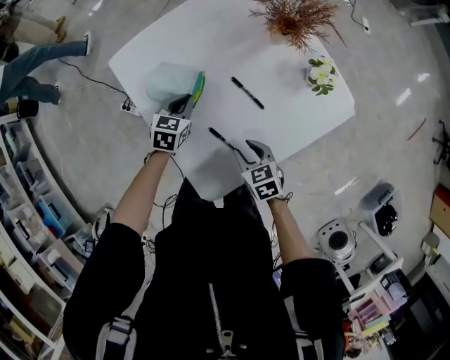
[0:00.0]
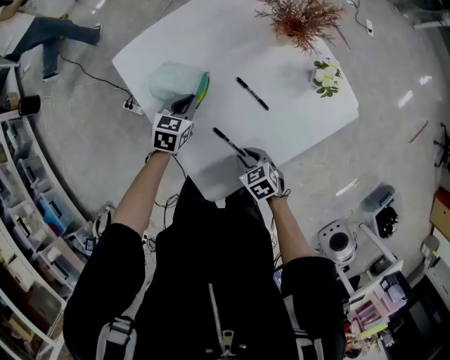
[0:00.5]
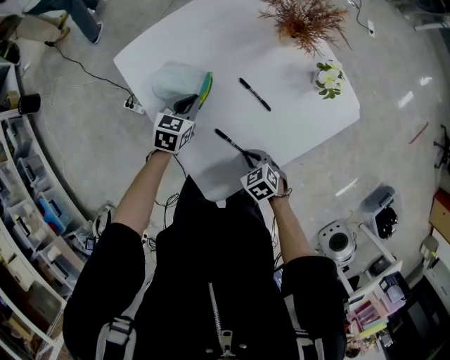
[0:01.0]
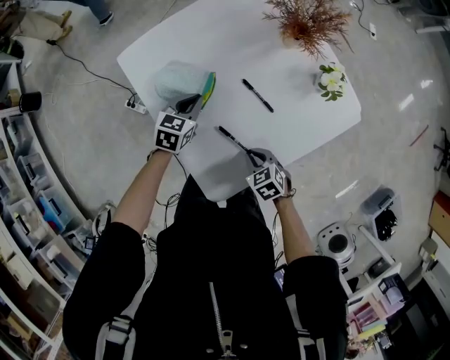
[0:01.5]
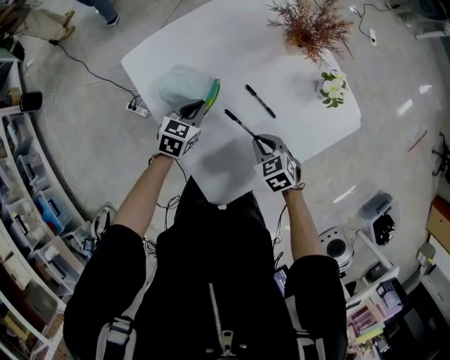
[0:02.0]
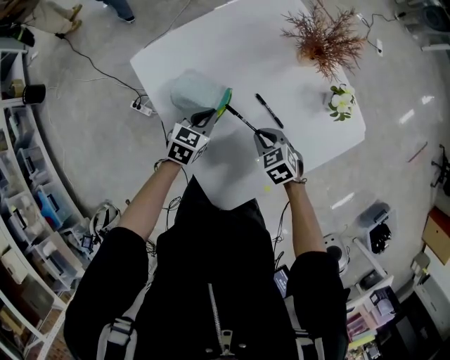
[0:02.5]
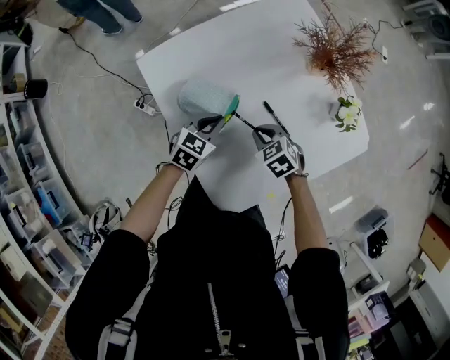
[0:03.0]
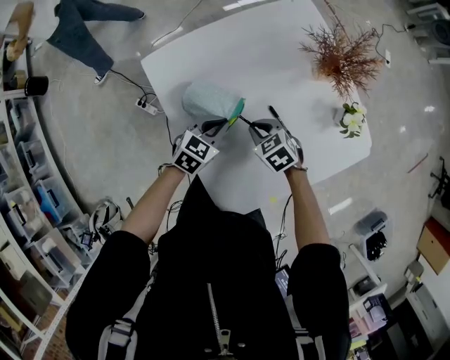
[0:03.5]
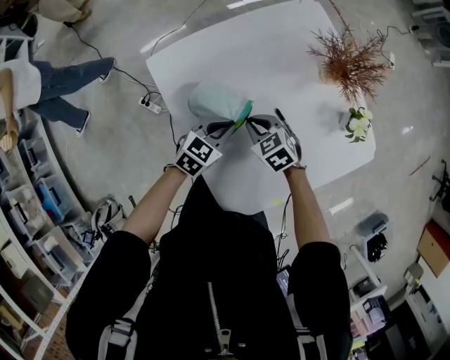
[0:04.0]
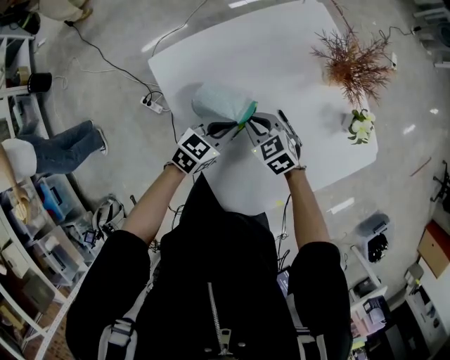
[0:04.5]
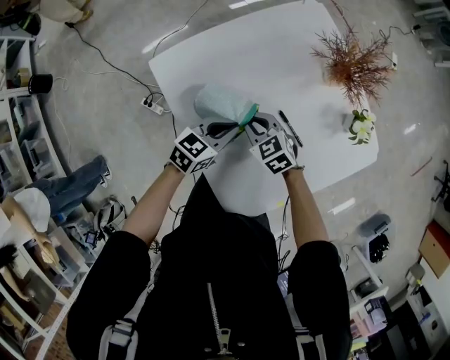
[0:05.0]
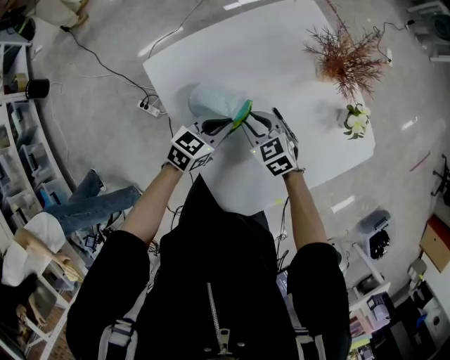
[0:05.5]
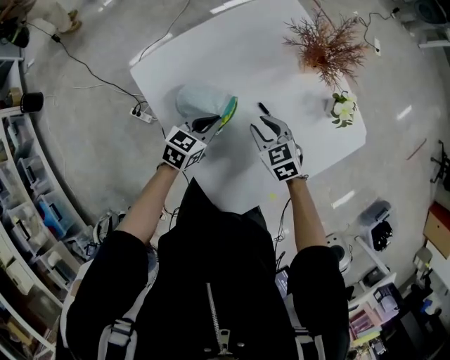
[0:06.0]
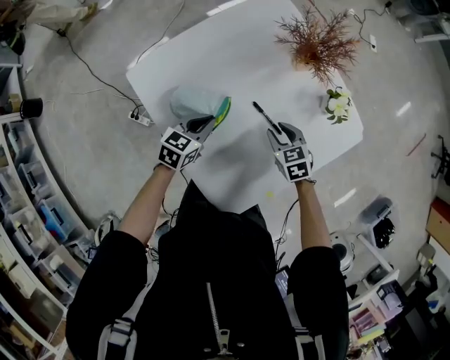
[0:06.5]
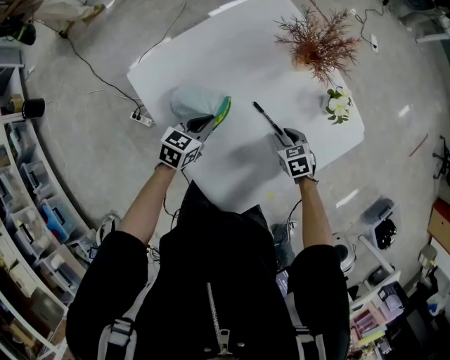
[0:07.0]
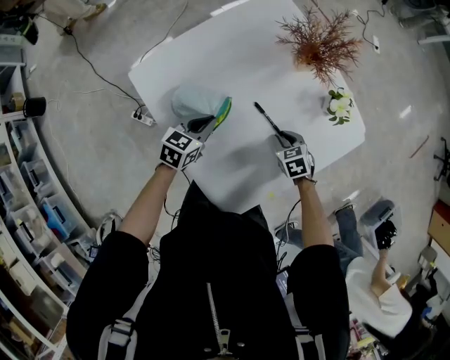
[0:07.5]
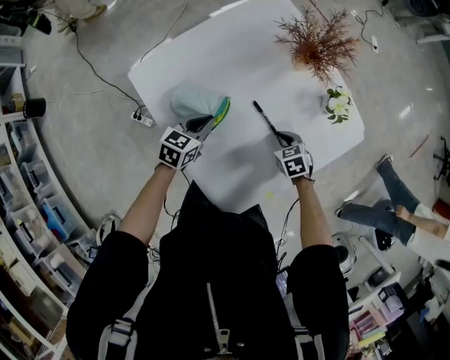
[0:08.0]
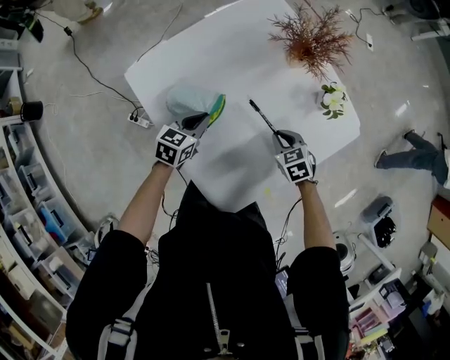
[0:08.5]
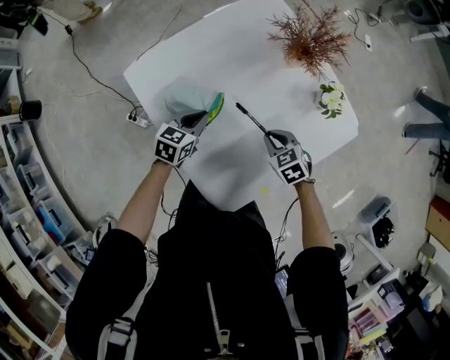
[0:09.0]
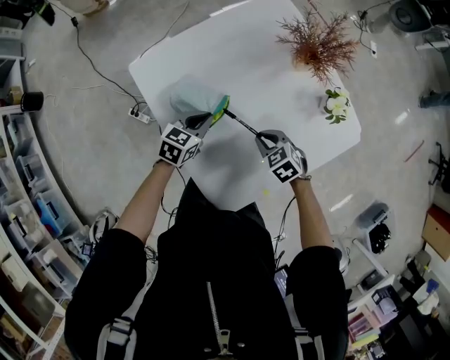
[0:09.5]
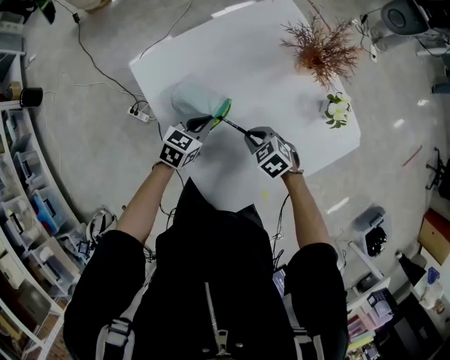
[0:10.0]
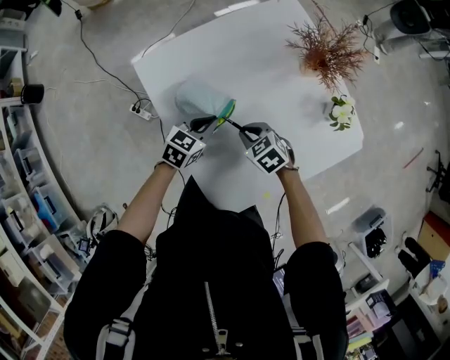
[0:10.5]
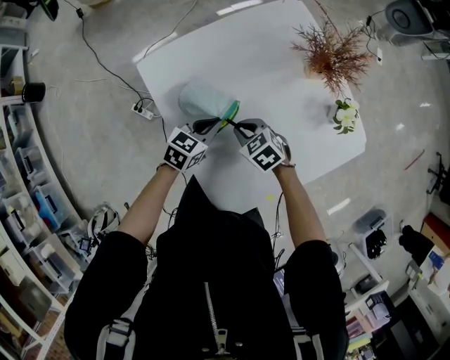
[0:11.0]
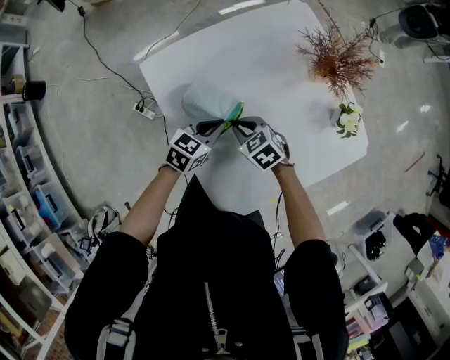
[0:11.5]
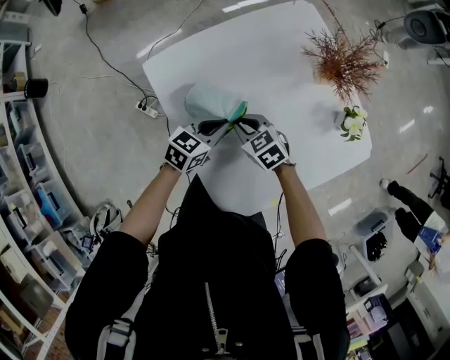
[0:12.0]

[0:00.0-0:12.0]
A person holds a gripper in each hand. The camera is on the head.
0:00.0 to 0:02.0: The right gripper closes.
0:02.0 to 0:04.0: The right gripper shifts approximately 15 cm forward and to the left.
0:04.0 to 0:06.0: The right gripper shifts roughly 5 cm to the right, and opens.
0:06.0 to 0:08.0: The right gripper travels to the right and downward by roughly 15 cm.
0:08.0 to 0:10.0: The right gripper goes about 15 cm to the left and upward, and swivels approximately 30 degrees.
0:10.0 to 0:12.0: The right gripper is displaced to the left and forward by roughly 10 cm.

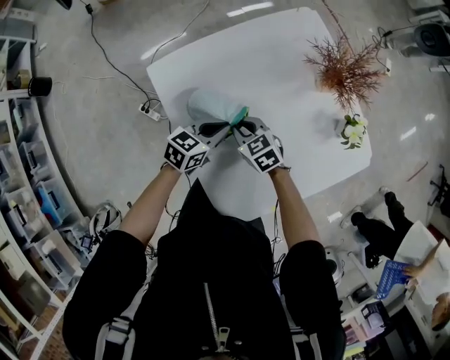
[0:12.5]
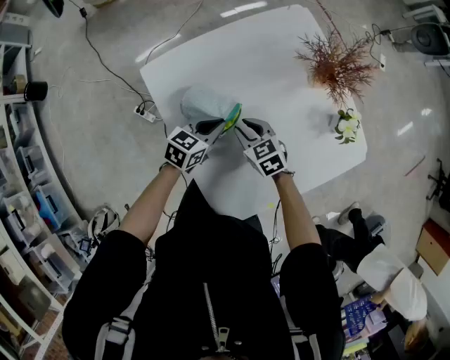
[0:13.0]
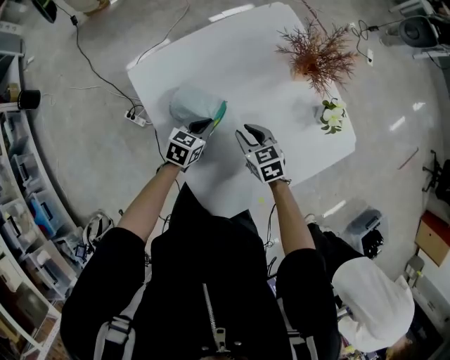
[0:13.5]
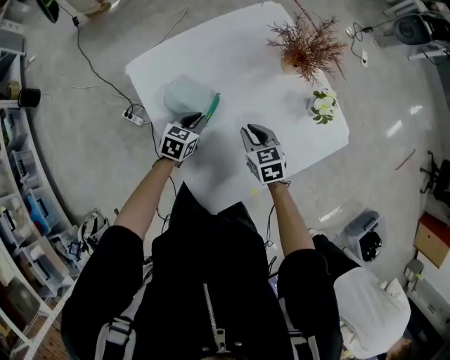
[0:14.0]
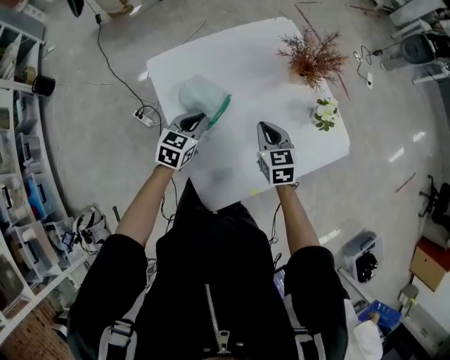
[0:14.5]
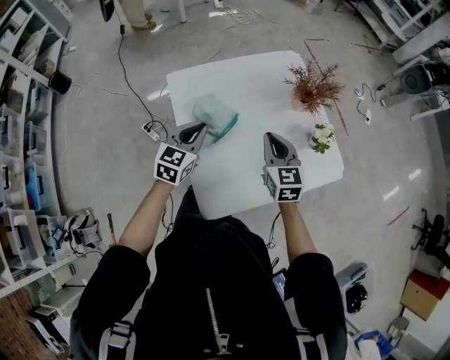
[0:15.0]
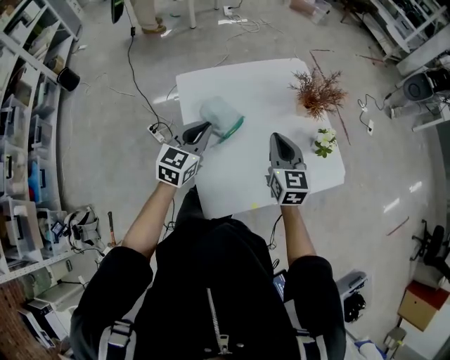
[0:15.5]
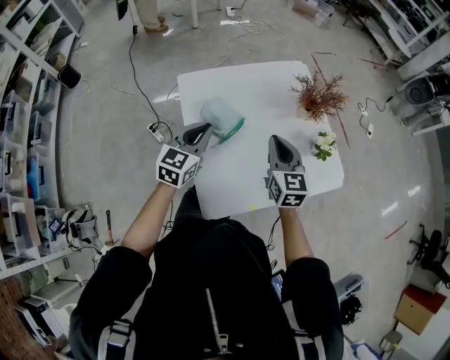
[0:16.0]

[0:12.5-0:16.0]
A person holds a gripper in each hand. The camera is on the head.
0:12.5 to 0:14.5: The left gripper goes approximately 5 cm backward, and turns by approximately 20 degrees. Meanwhile the right gripper goes roughly 20 cm to the right and upward, and turns by some 20 degrees.
0:14.5 to 0:16.0: The two grippers go some 15 cm upward.

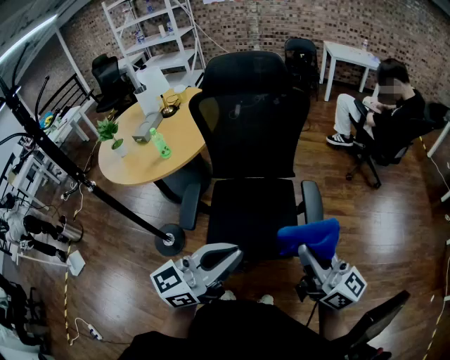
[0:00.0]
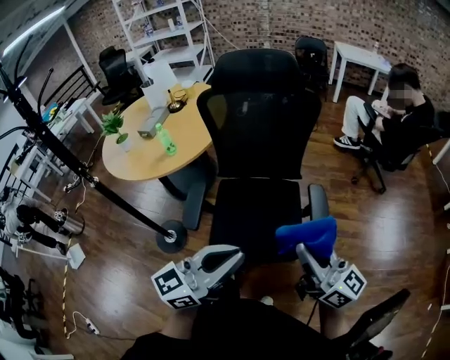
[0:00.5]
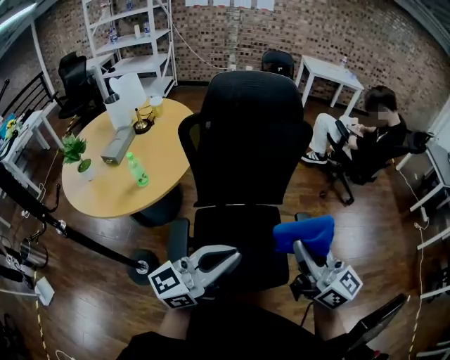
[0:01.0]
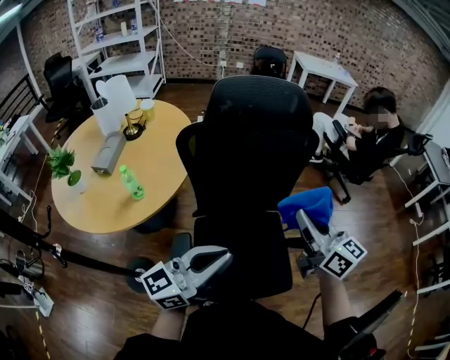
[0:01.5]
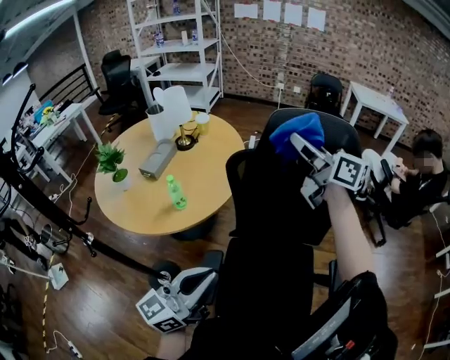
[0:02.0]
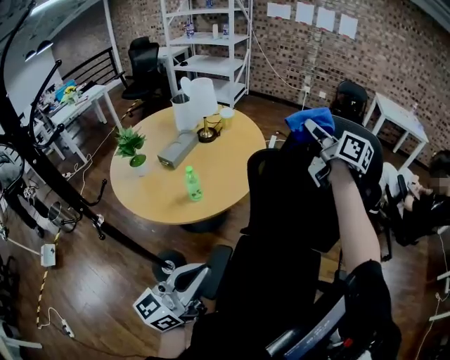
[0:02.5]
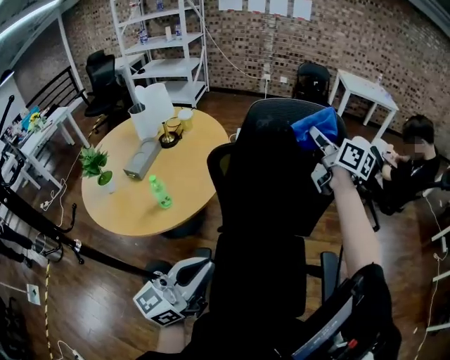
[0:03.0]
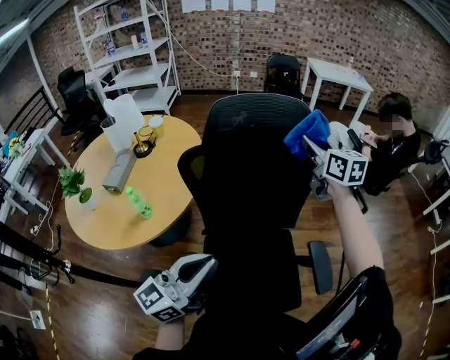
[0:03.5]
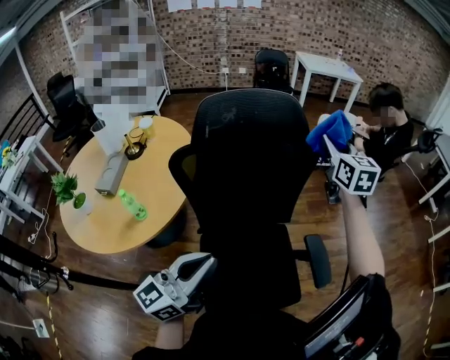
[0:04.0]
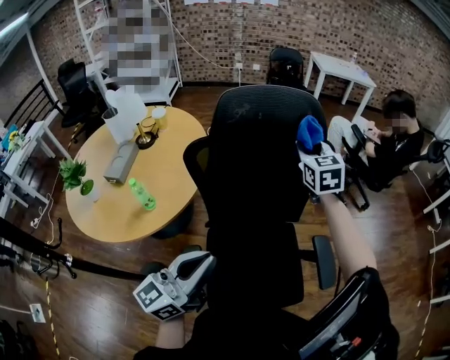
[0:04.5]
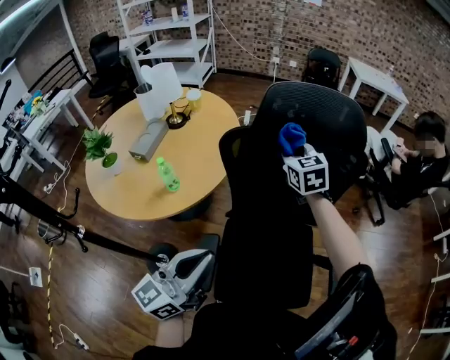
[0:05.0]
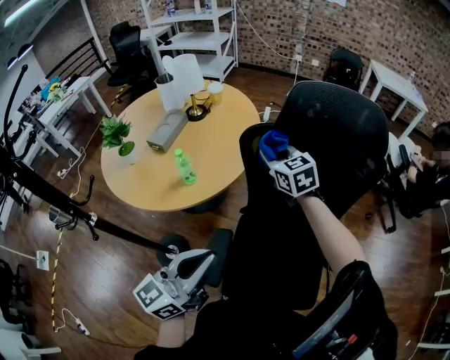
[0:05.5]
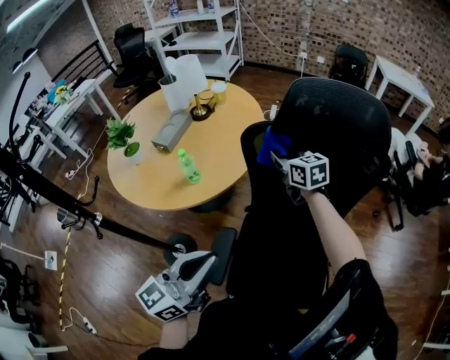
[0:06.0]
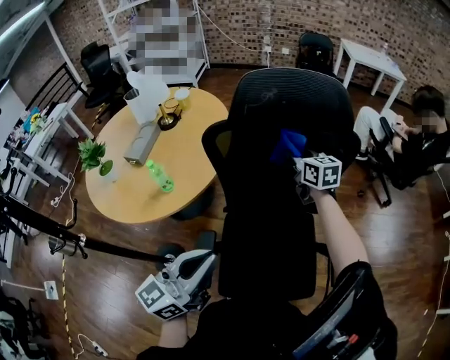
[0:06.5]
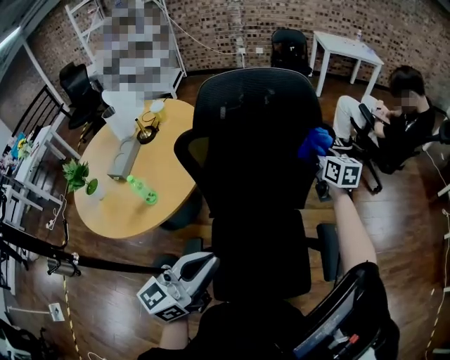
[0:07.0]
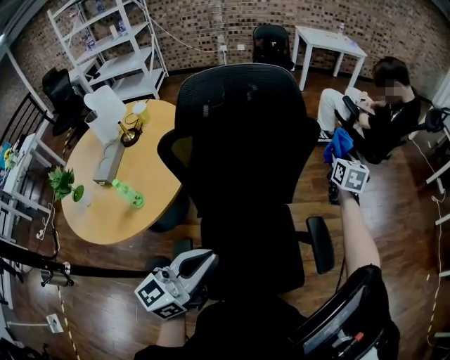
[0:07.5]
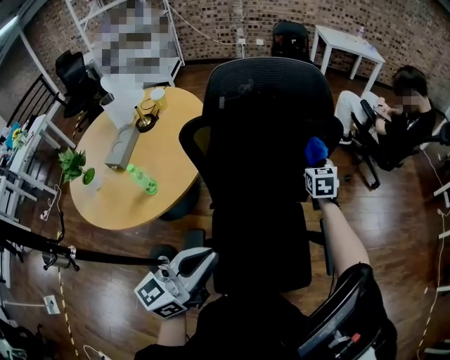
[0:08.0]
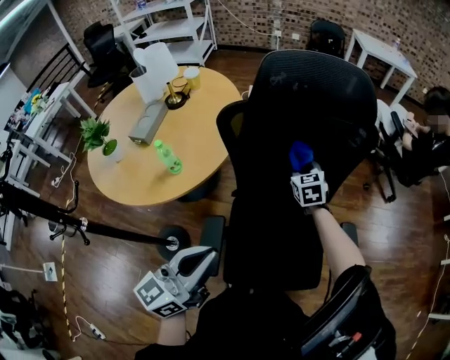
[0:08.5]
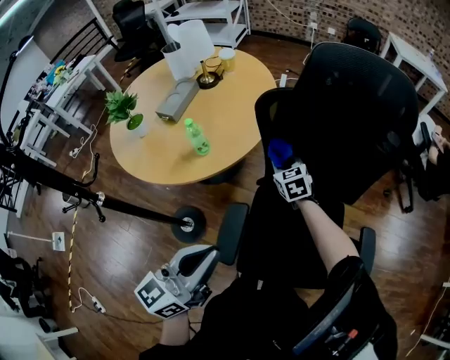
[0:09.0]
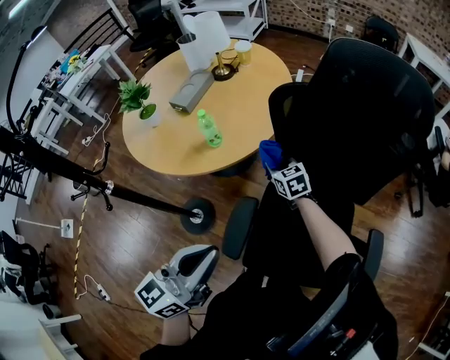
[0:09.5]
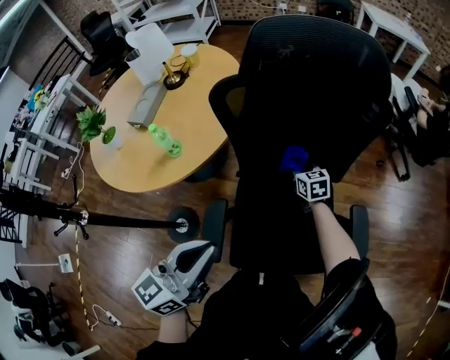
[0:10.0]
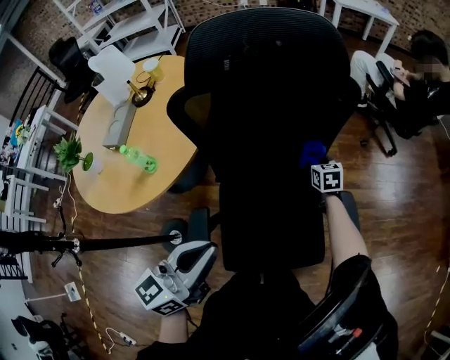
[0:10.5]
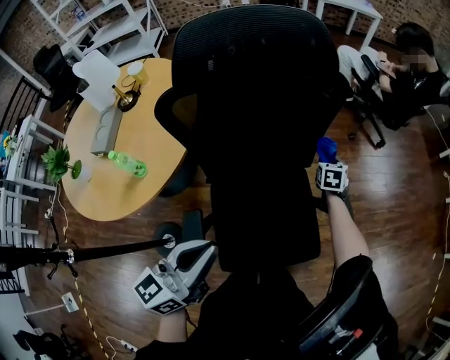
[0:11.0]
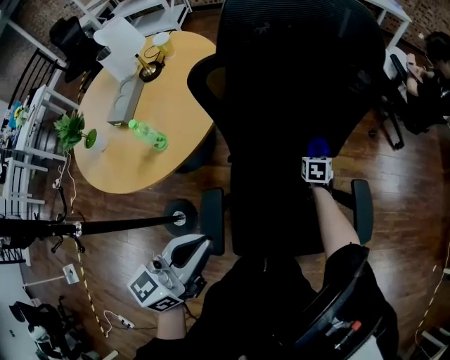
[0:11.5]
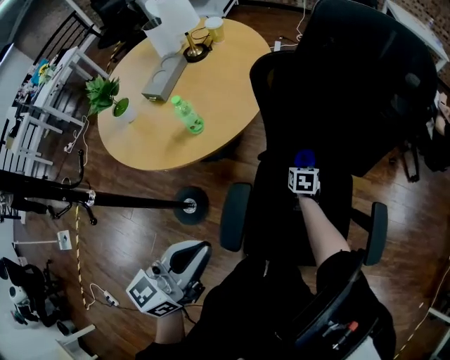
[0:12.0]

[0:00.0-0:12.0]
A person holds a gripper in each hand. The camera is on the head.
0:00.0 to 0:02.0: The left gripper shifts by roughly 30 cm. The right gripper moves approximately 60 cm.
0:02.0 to 0:04.0: The left gripper changes place by approximately 10 cm. The right gripper ends up approximately 30 cm from where it was, and turns by some 60 degrees.
0:04.0 to 0:06.0: The right gripper ends up about 40 cm from where it was, and rotates about 50 degrees, while the left gripper ends up some 10 cm from where it was, and turns by some 20 degrees.
0:06.0 to 0:08.0: The right gripper changes place by roughly 35 cm, and swivels about 50 degrees. The left gripper shifts by some 10 cm.
0:08.0 to 0:10.0: The right gripper turns by some 30 degrees.
0:10.0 to 0:12.0: The right gripper shifts roughly 10 cm downward, and changes its angle by some 20 degrees, while the left gripper moves about 10 cm.
